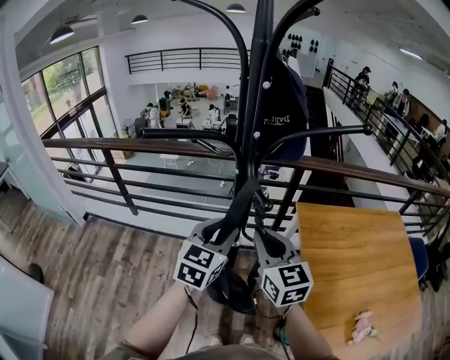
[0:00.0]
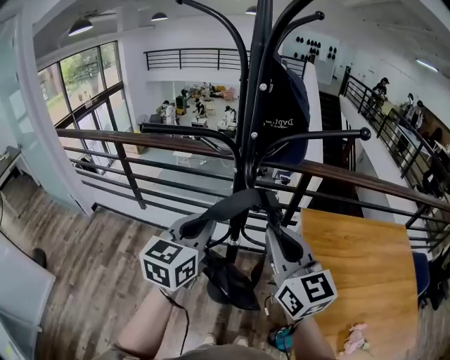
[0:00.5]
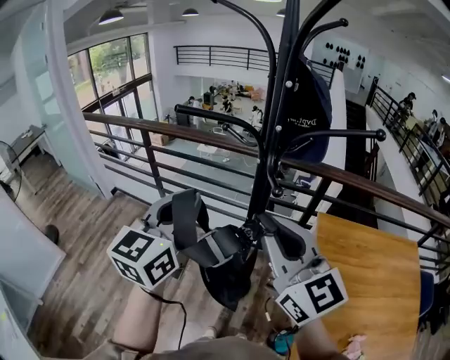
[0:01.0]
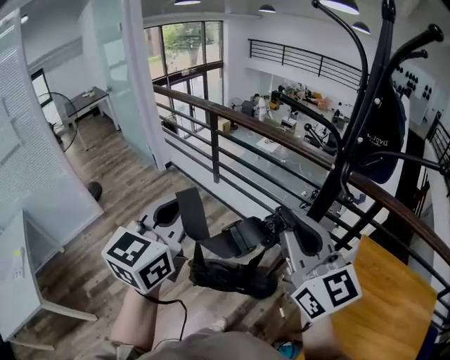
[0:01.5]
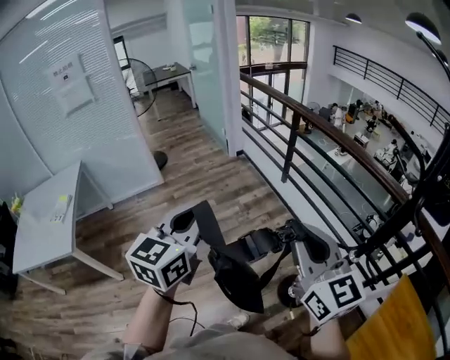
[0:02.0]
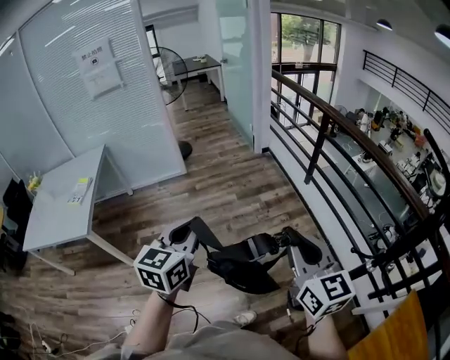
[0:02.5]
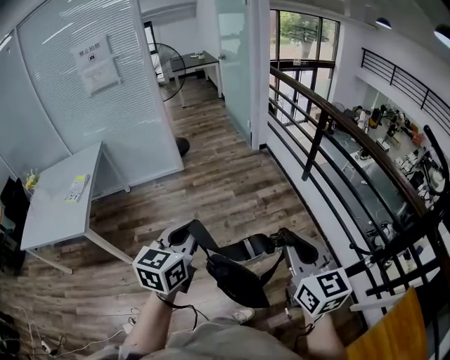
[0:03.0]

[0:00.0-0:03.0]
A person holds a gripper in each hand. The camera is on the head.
0:00.0 to 0:01.5: The right gripper ends up about 20 cm from where it was, and swivels approximately 40 degrees, while the left gripper moves approximately 35 cm, changes its angle by roughly 40 degrees, and closes up.
0:01.5 to 0:03.0: The right gripper moves some 20 cm, and rotates approximately 30 degrees. Meanwhile the left gripper moves roughly 30 cm, and swivels about 40 degrees.

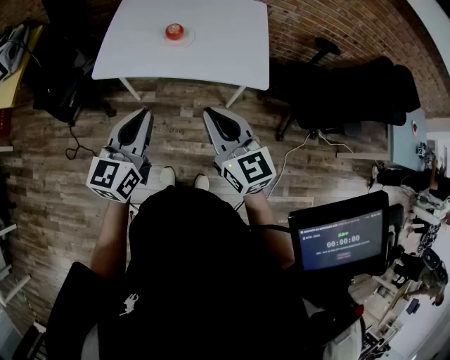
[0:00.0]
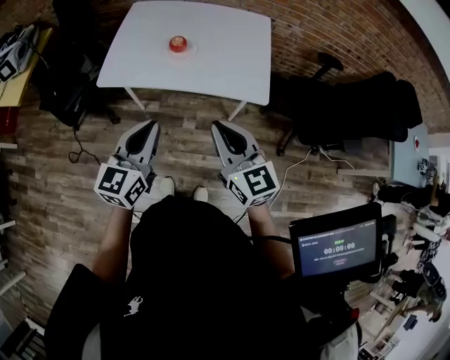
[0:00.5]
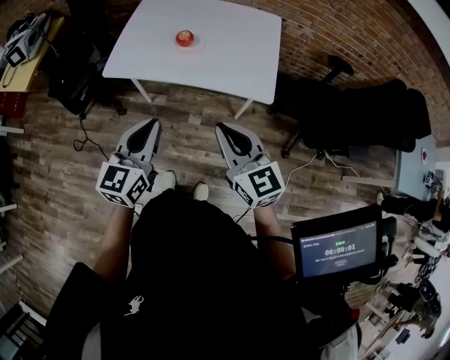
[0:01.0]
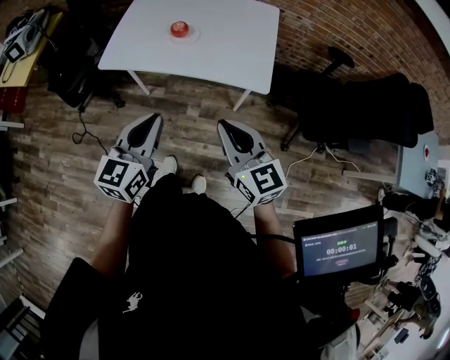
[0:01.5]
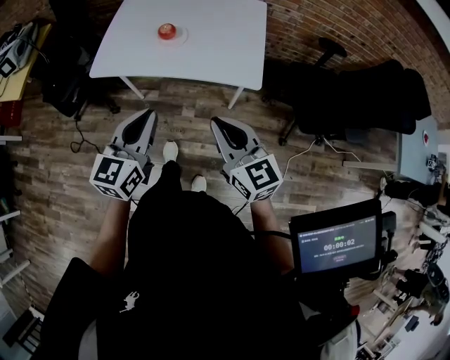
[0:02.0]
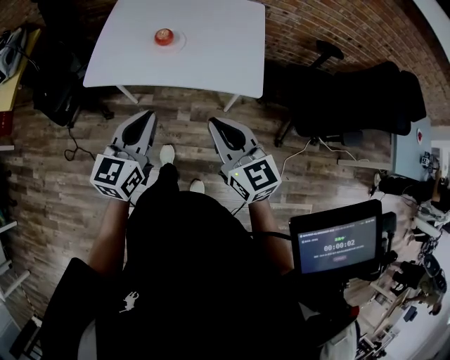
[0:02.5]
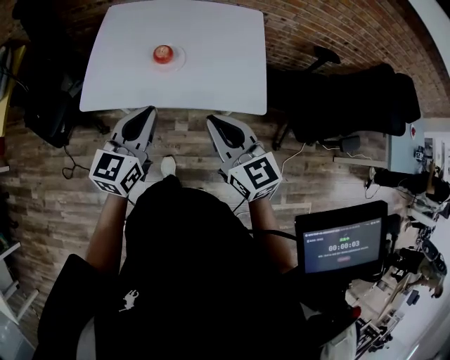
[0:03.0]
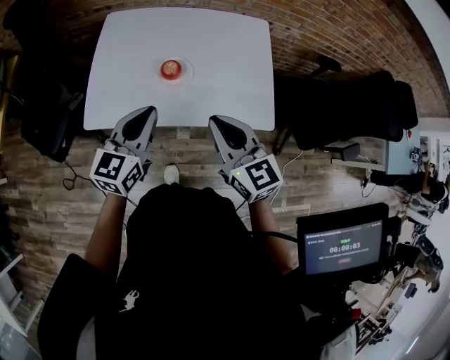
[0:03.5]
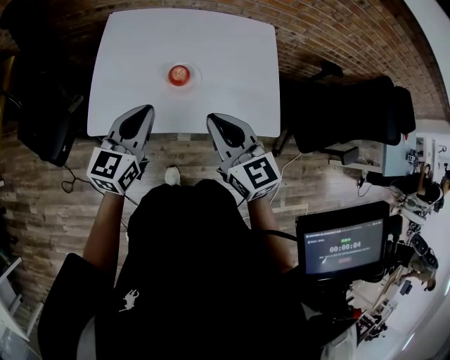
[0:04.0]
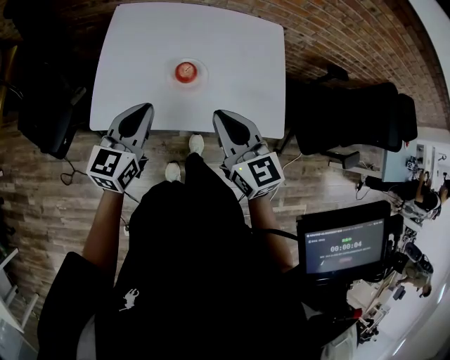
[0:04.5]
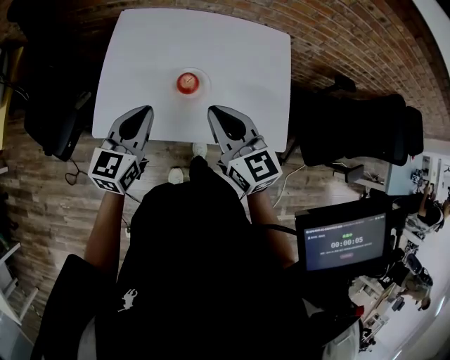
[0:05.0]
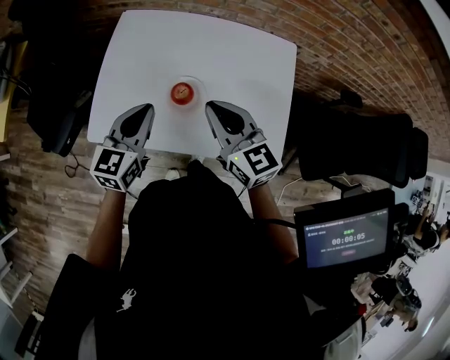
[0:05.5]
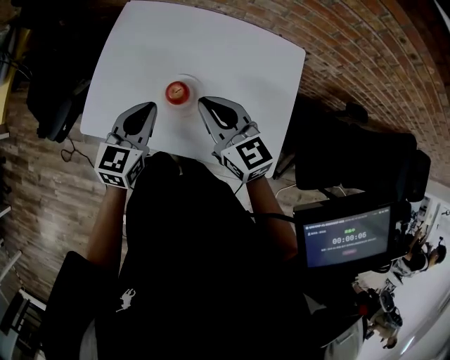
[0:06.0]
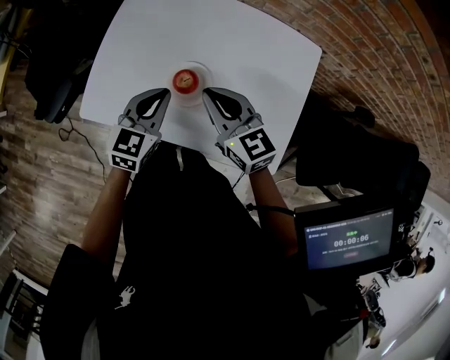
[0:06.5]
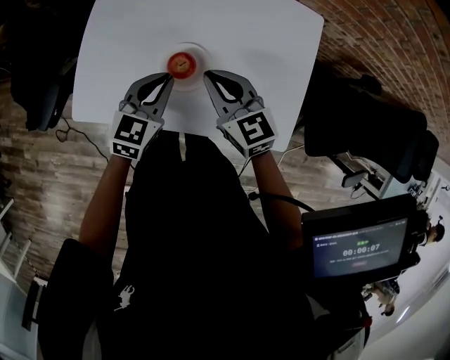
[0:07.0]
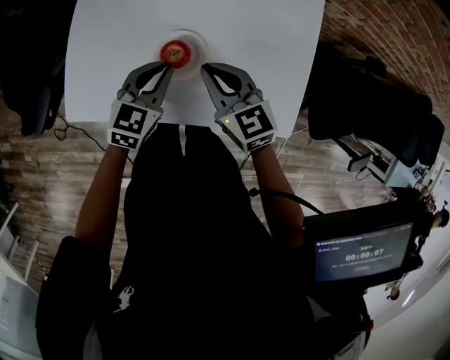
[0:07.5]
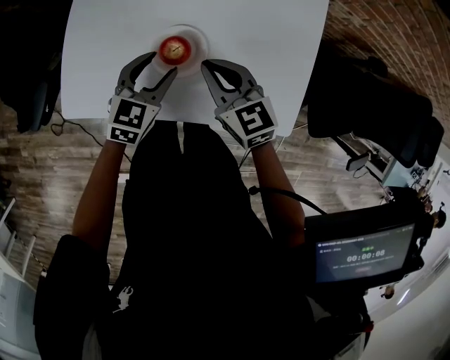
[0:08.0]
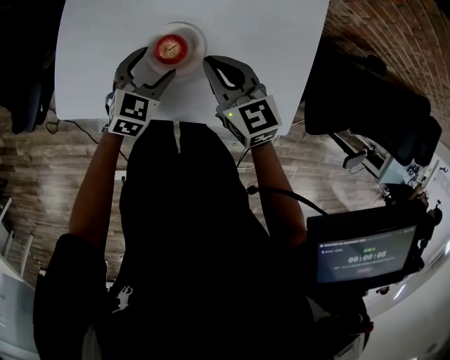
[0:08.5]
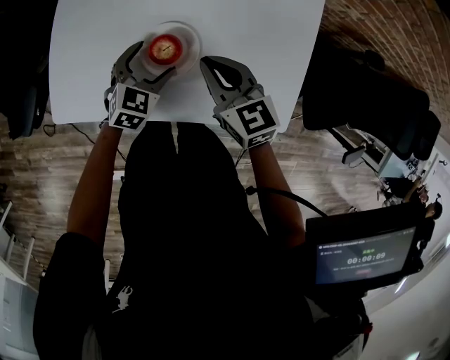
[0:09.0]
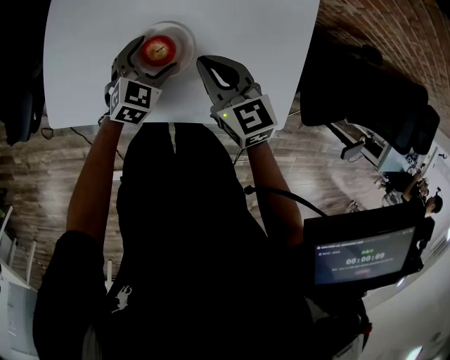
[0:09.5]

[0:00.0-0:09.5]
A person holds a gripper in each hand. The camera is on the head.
0:00.0 to 0:02.0: Both grippers move to the right, roughly 10 cm.
0:02.0 to 0:04.0: The two grippers go about 30 cm forward and to the left.
0:04.0 to 0:05.5: The grippers both shift forward by about 10 cm.
0:05.5 to 0:07.5: The right gripper heads downward, covering approximately 15 cm. The left gripper is displaced downward and to the right by approximately 15 cm.
0:07.5 to 0:09.5: The left gripper heads downward, covering some 10 cm, and opens its fingers.

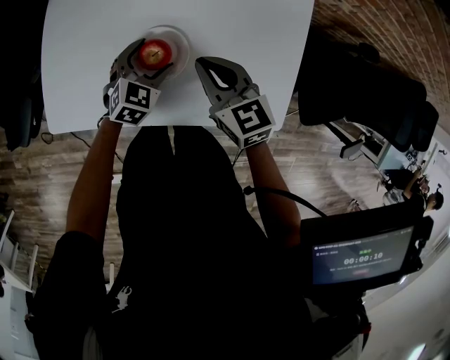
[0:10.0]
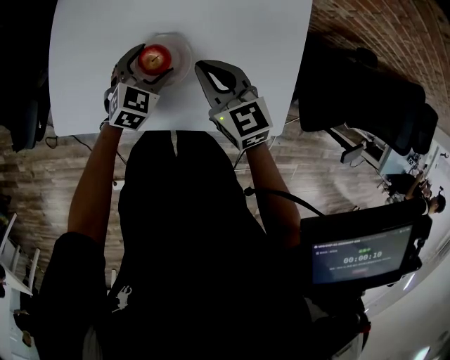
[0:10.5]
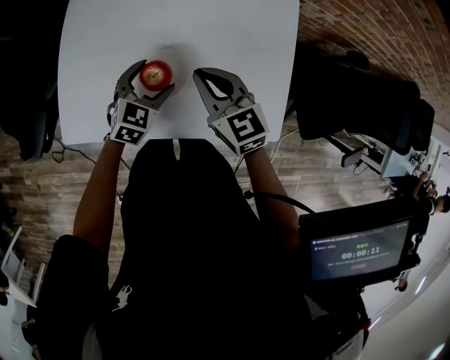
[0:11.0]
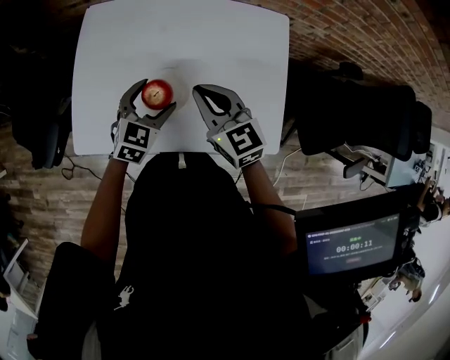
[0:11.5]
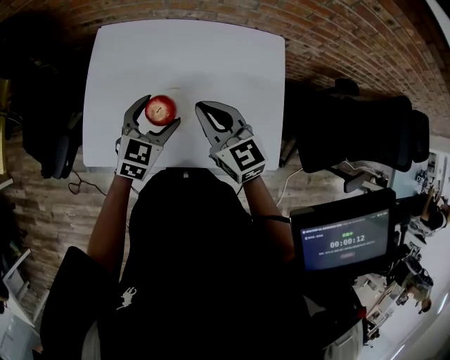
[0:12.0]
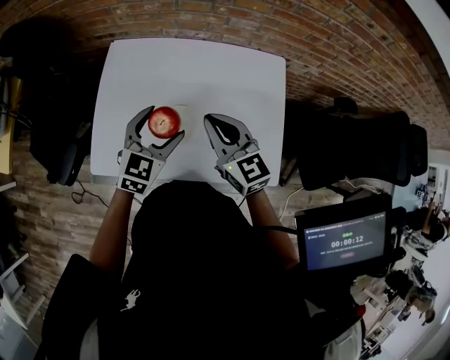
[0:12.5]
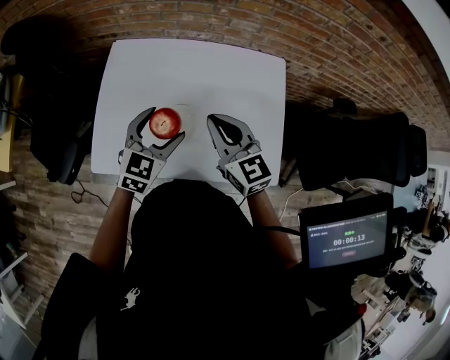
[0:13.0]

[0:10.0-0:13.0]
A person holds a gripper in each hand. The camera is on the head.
0:10.0 to 0:11.5: Both grippers travel together upward, about 10 cm.
0:11.5 to 0:13.0: The right gripper heads upward, covering about 5 cm. Meanwhile the left gripper heads upward, covering about 10 cm.

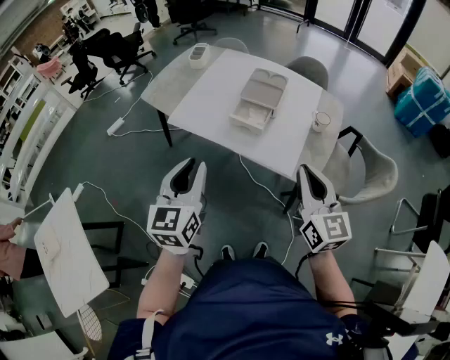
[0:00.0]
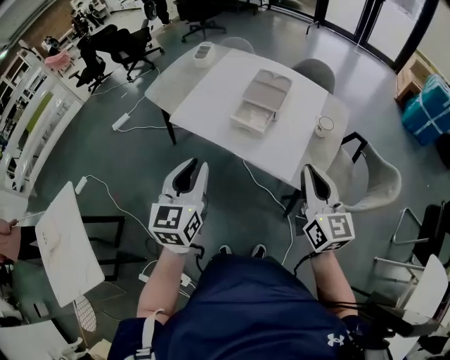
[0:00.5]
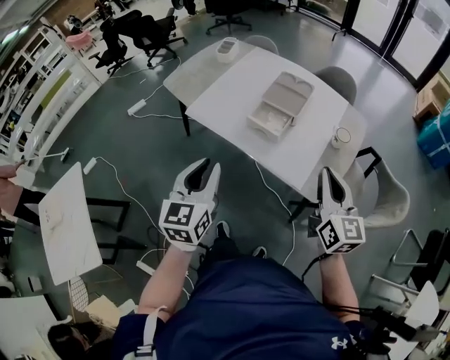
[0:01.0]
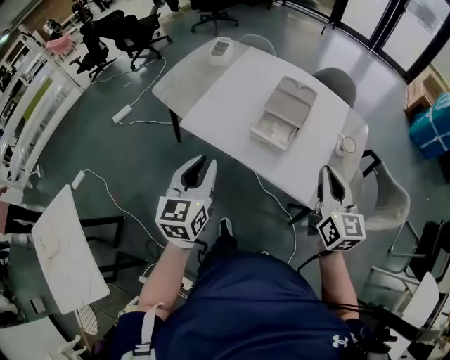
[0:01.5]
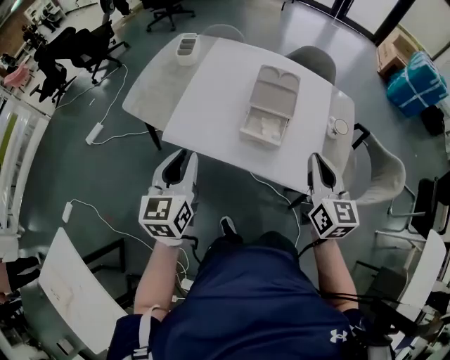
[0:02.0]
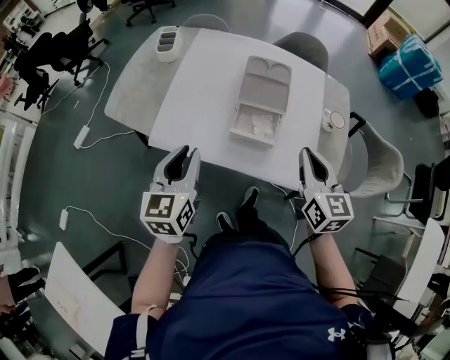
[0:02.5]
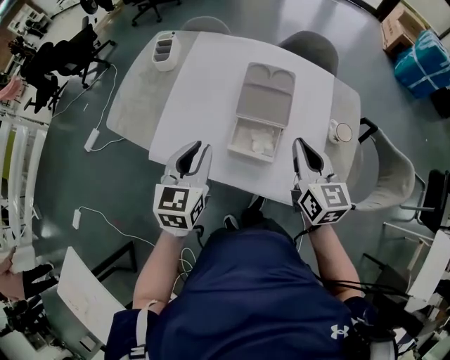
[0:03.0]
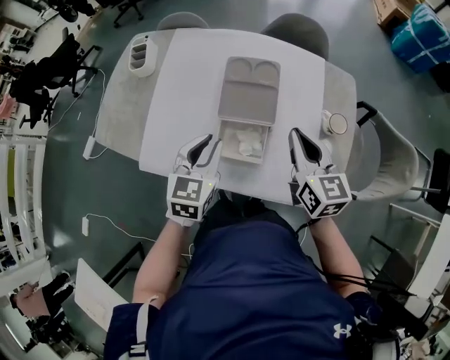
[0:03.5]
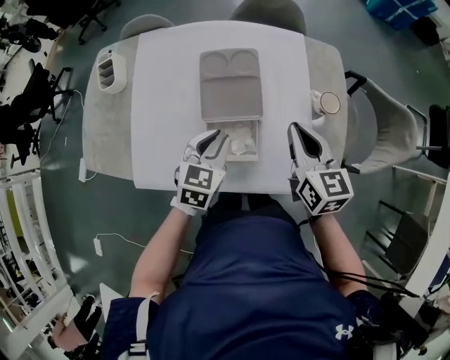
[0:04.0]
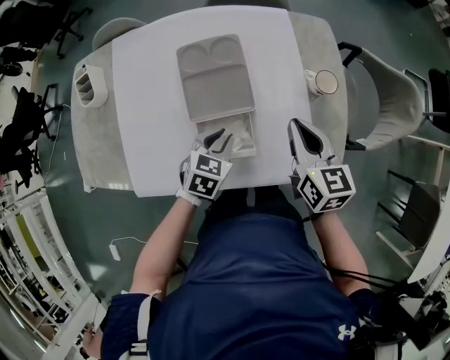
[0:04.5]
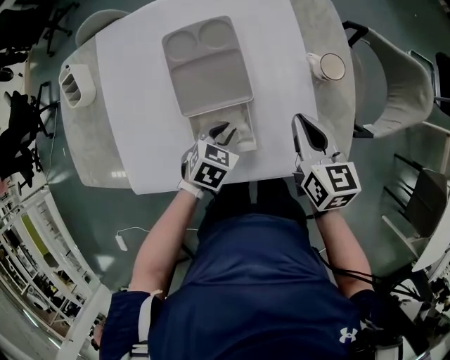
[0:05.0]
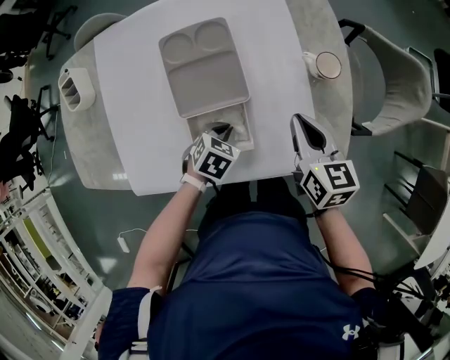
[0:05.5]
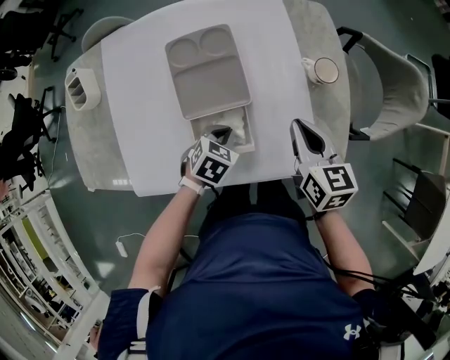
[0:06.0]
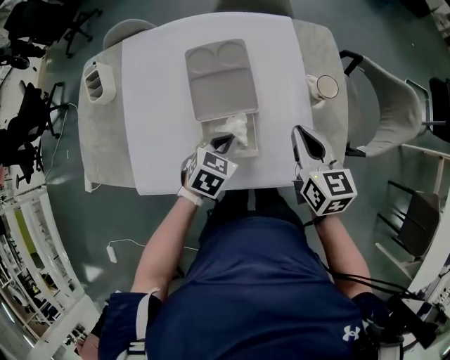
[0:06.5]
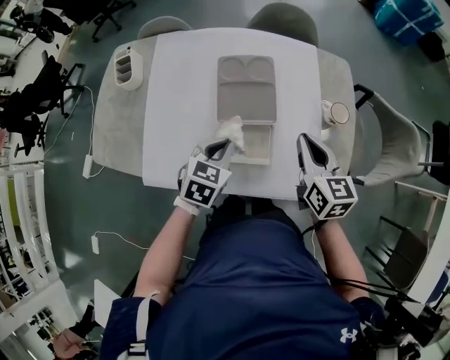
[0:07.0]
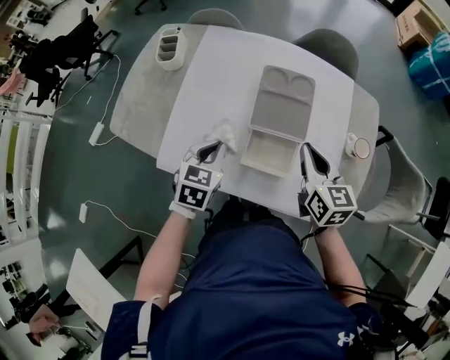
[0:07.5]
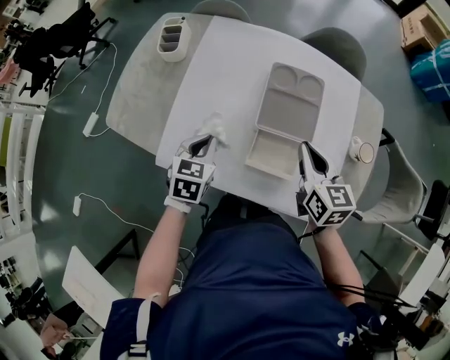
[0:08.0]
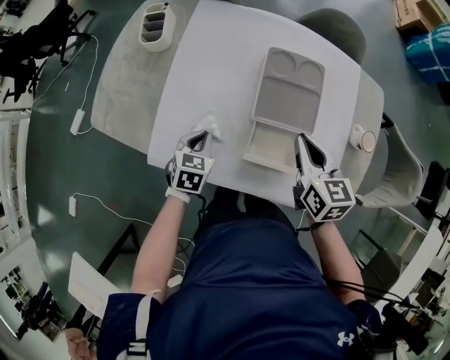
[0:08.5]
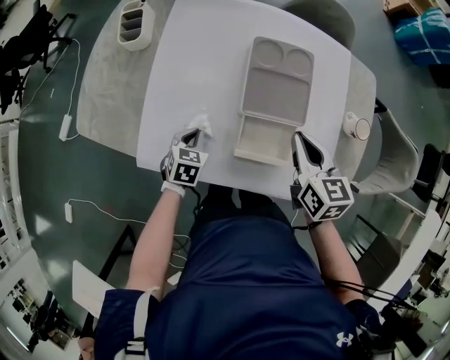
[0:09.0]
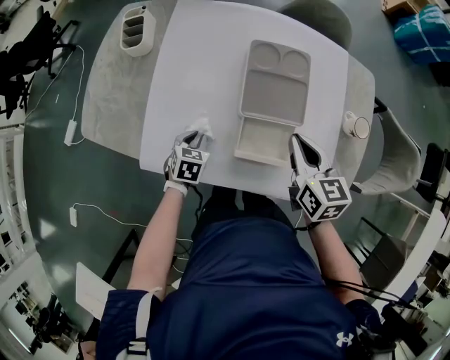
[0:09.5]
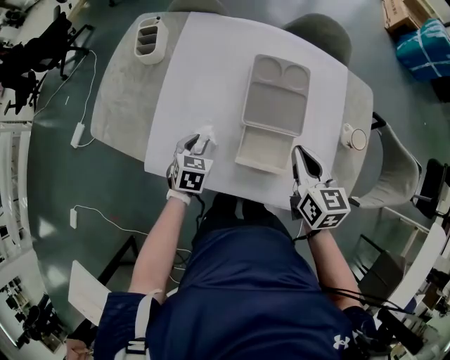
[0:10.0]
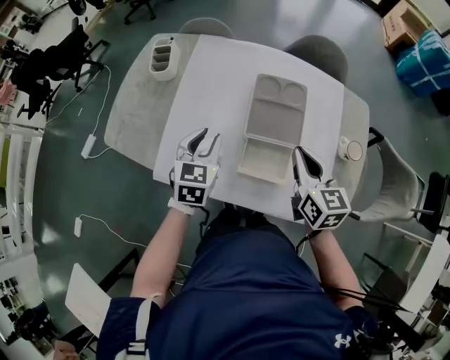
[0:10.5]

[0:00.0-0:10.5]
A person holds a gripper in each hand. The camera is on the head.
0:00.0 to 0:02.0: The right gripper is displaced forward by some 20 cm. The left gripper moves forward and to the left, about 25 cm.
0:02.0 to 0:04.0: The right gripper moves forward and downward, roughly 20 cm, while the left gripper shifts about 35 cm forward, to the right and downward, and swivels approximately 40 degrees.
0:04.0 to 0:06.5: The left gripper travels downward by some 5 cm, and changes its angle by some 20 degrees.
0:06.5 to 0:08.5: The right gripper moves some 15 cm, while the left gripper shifts by roughly 25 cm, and swivels some 30 degrees.
0:08.5 to 0:10.5: The left gripper moves upward, approximately 15 cm, and opens. Meanwhile the right gripper heads upward, covering some 5 cm.
